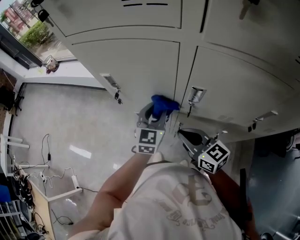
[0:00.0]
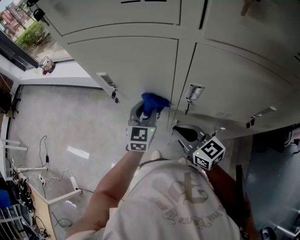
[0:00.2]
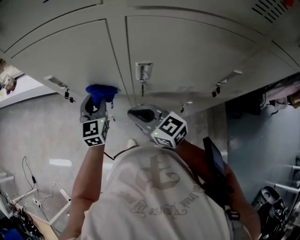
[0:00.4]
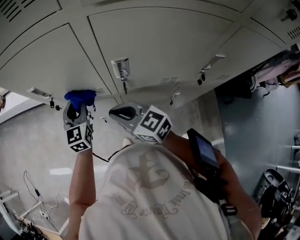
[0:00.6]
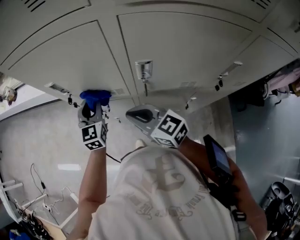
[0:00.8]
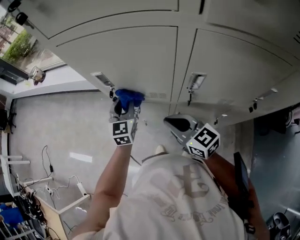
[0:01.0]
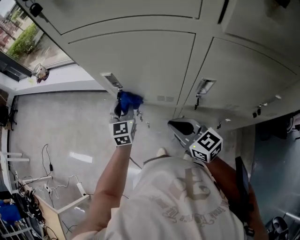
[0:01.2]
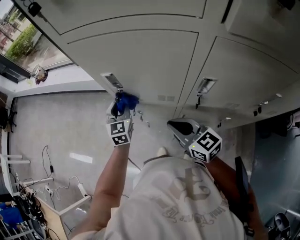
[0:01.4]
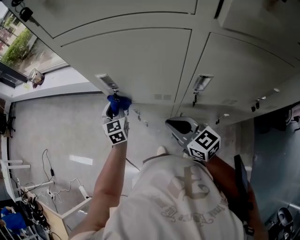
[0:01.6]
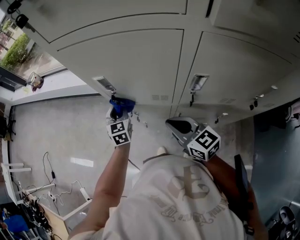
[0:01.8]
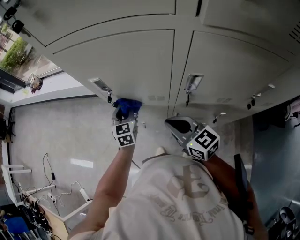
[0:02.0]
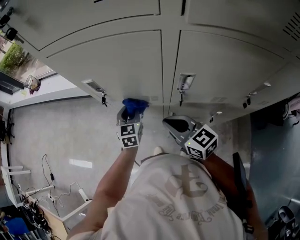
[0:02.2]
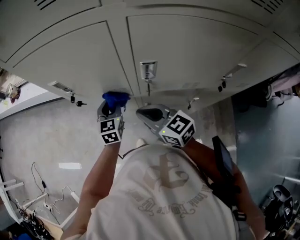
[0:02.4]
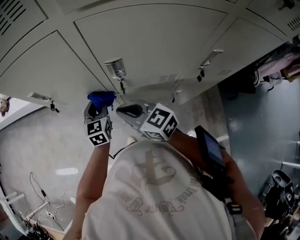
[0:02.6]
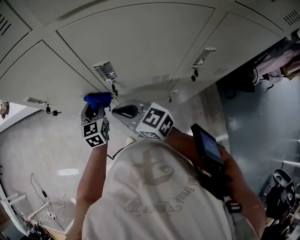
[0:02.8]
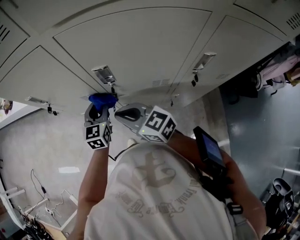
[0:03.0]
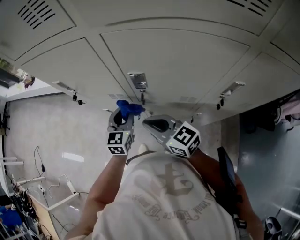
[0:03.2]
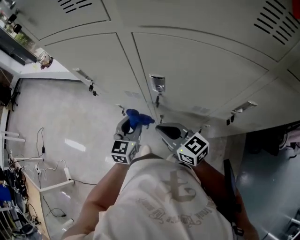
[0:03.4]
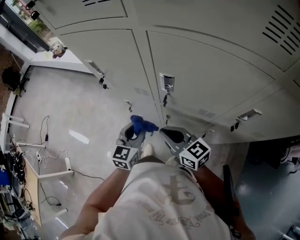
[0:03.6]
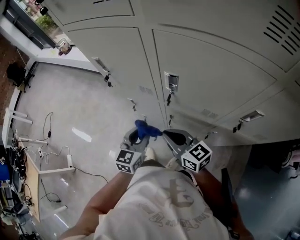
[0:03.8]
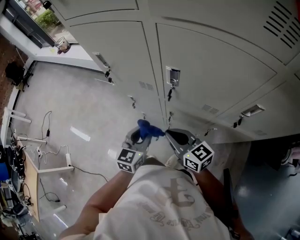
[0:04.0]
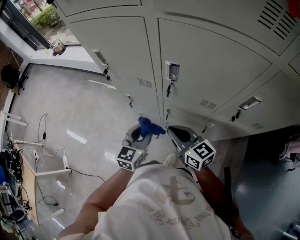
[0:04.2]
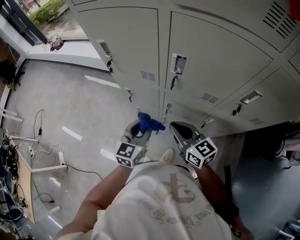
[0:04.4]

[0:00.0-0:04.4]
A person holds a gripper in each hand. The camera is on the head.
0:00.0 to 0:01.4: The right gripper shifts approximately 5 cm to the left, while the left gripper shifts some 20 cm to the left and forward.
0:01.4 to 0:03.0: The left gripper moves to the right and backward, some 25 cm, while the right gripper travels to the right by approximately 10 cm.
0:03.0 to 0:04.4: The right gripper goes some 10 cm backward; the left gripper travels backward by about 15 cm.

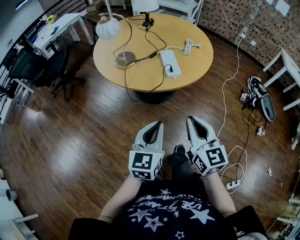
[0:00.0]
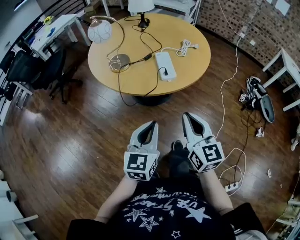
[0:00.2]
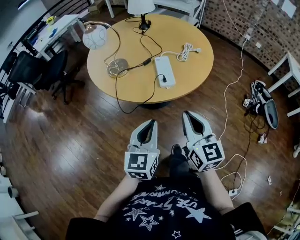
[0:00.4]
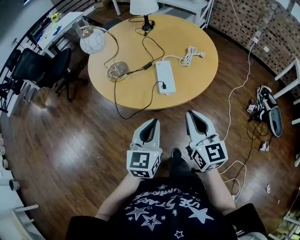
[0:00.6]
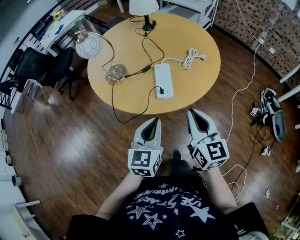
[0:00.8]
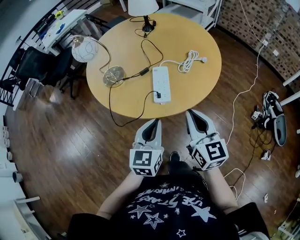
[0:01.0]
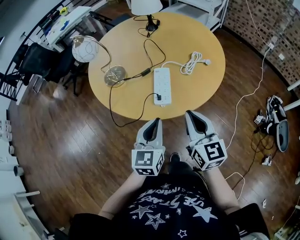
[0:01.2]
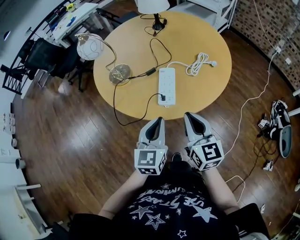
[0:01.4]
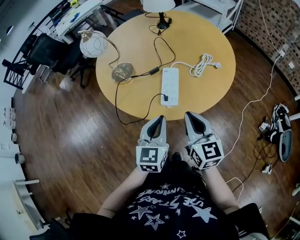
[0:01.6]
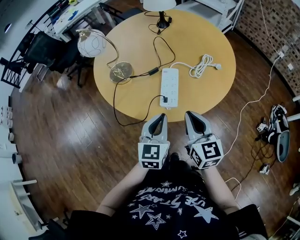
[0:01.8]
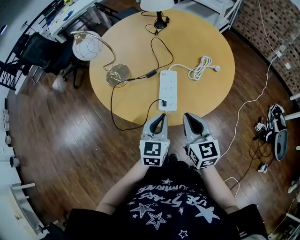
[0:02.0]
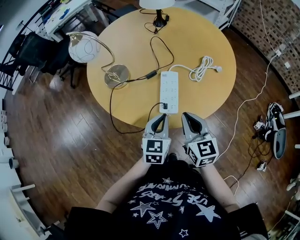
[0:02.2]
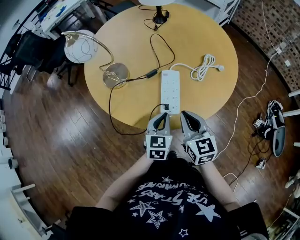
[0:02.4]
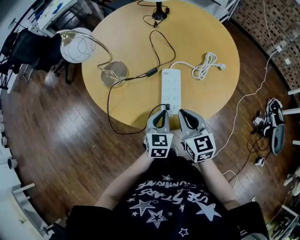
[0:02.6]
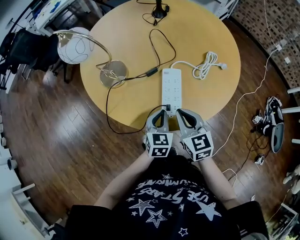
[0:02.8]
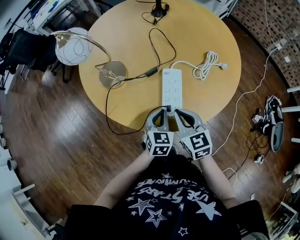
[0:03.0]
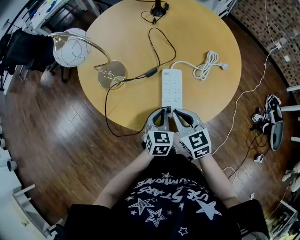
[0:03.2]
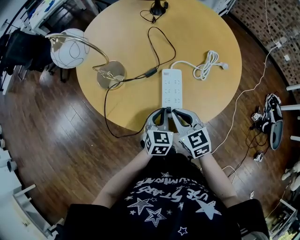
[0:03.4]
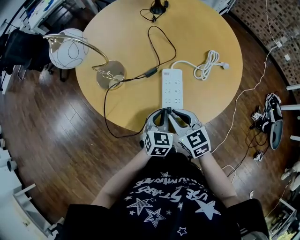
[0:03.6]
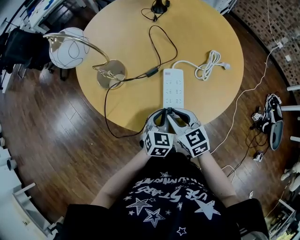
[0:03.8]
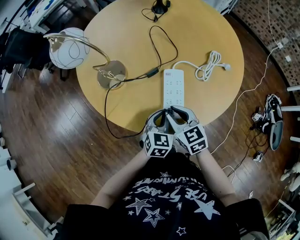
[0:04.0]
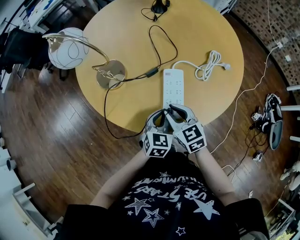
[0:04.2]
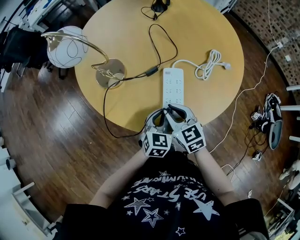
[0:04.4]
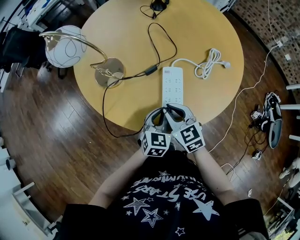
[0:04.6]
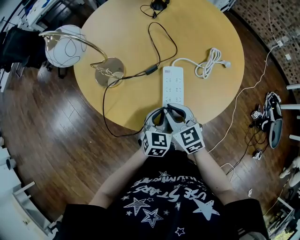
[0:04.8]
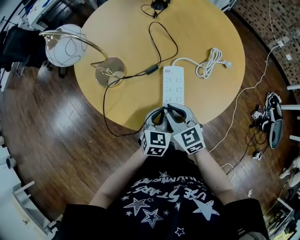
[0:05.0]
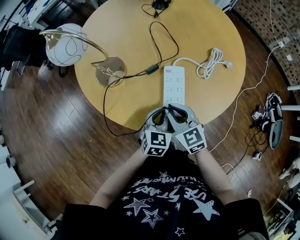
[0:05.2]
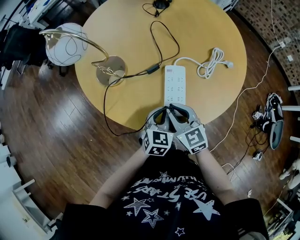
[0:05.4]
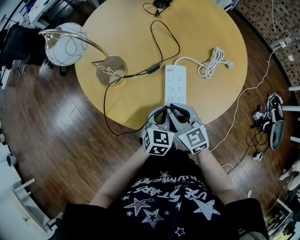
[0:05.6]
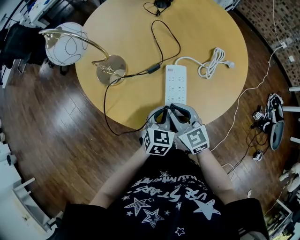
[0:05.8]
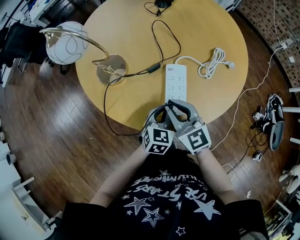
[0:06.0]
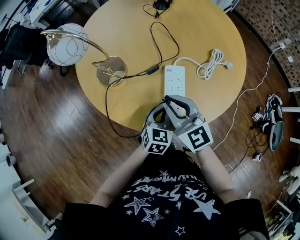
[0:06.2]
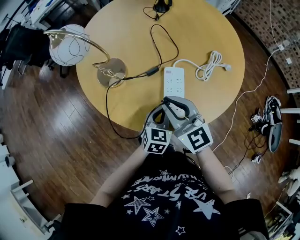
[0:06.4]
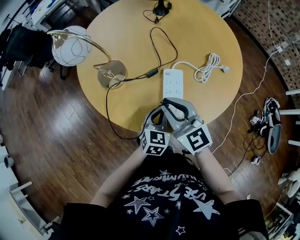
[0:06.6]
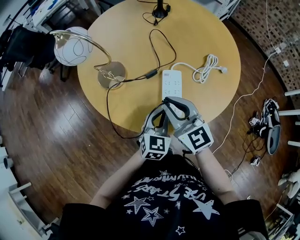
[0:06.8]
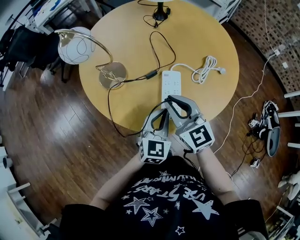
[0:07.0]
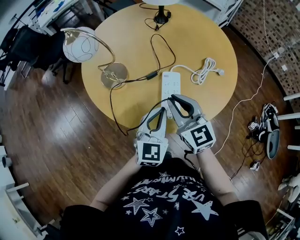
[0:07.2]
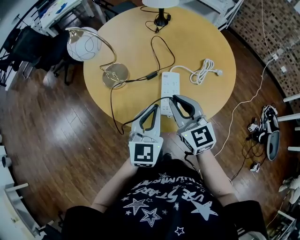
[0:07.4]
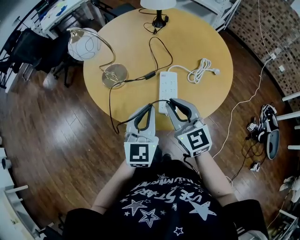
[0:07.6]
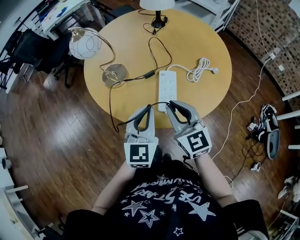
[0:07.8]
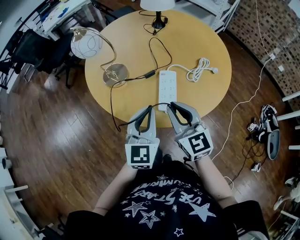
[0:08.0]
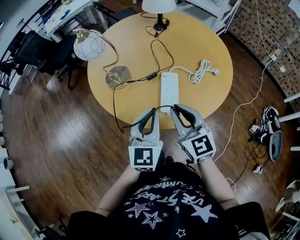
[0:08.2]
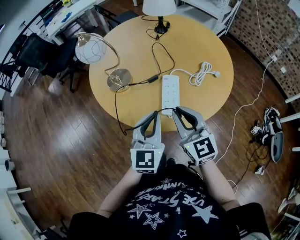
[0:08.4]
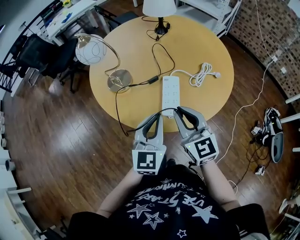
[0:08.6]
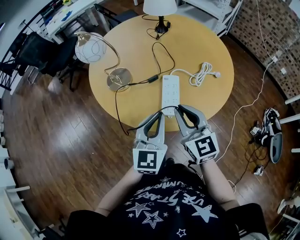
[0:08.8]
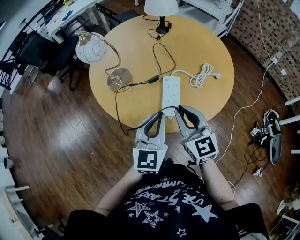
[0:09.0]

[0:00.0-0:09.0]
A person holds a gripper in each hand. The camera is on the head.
0:00.0 to 0:01.6: The grippers both shift forward and to the right by about 25 cm. The left gripper changes its angle by approximately 20 degrees.
0:01.6 to 0:03.0: The right gripper shifts some 15 cm downward, forward and to the left. Meanwhile the left gripper travels downward and forward by approximately 20 cm, and changes its angle by about 20 degrees.
0:03.0 to 0:04.4: The right gripper changes place by about 5 cm.
0:04.4 to 0:06.0: The right gripper heads upward, covering approximately 5 cm.
0:06.0 to 0:07.6: The right gripper moves upward, roughly 10 cm. The left gripper is displaced upward by roughly 20 cm, and tilts its fingers roughly 30 degrees upward.
0:07.6 to 0:09.0: The grippers stay close to where they were, moving slightly.

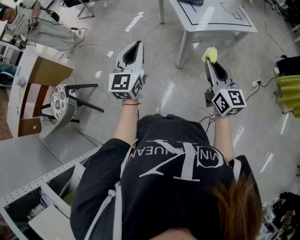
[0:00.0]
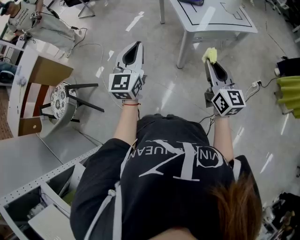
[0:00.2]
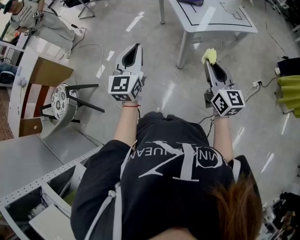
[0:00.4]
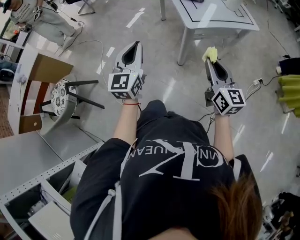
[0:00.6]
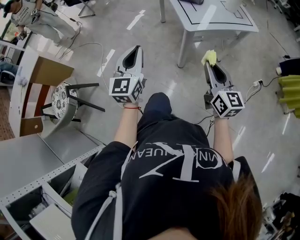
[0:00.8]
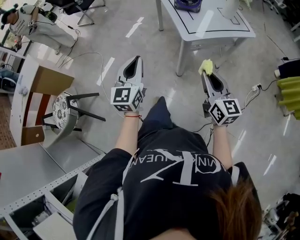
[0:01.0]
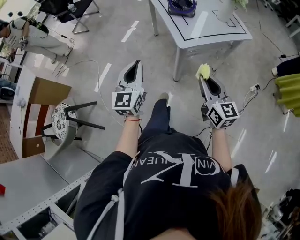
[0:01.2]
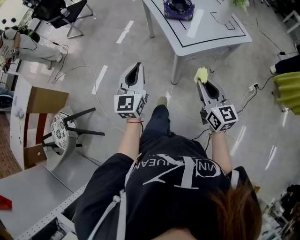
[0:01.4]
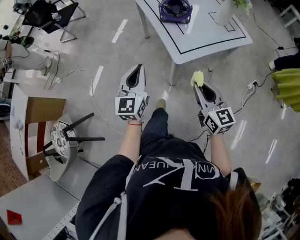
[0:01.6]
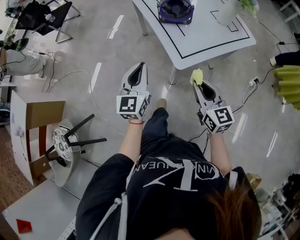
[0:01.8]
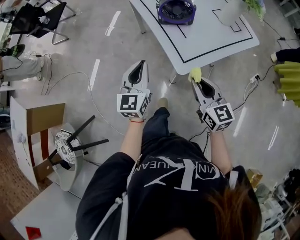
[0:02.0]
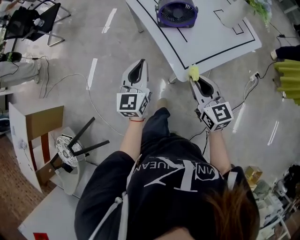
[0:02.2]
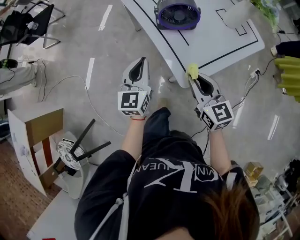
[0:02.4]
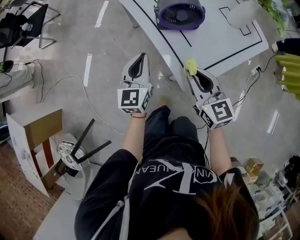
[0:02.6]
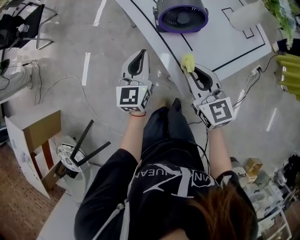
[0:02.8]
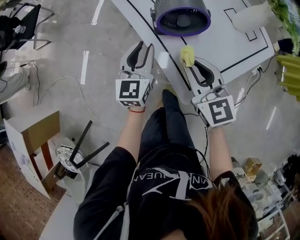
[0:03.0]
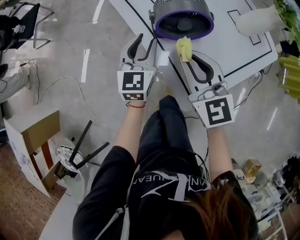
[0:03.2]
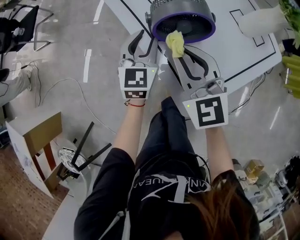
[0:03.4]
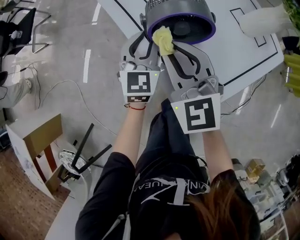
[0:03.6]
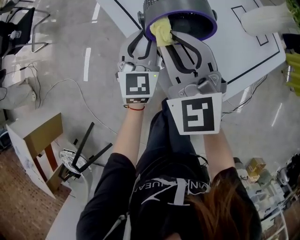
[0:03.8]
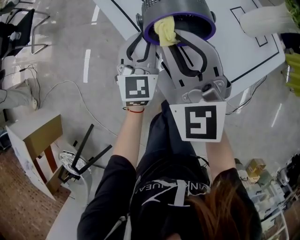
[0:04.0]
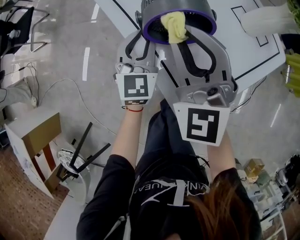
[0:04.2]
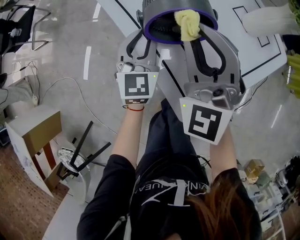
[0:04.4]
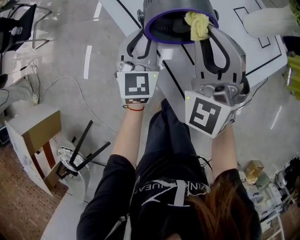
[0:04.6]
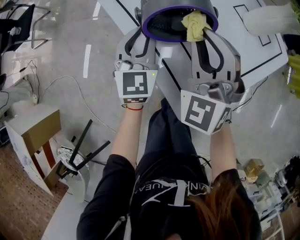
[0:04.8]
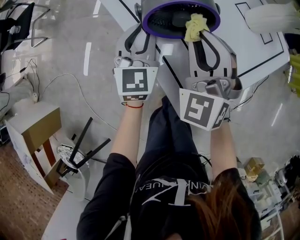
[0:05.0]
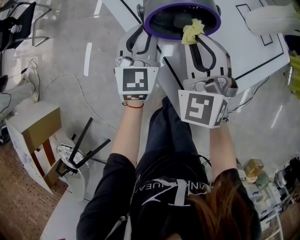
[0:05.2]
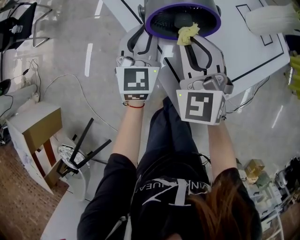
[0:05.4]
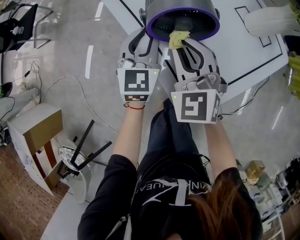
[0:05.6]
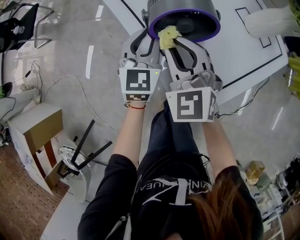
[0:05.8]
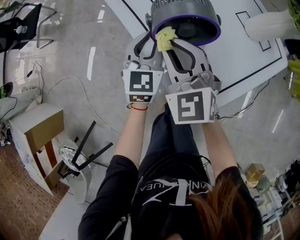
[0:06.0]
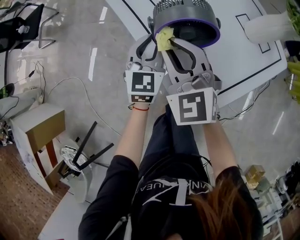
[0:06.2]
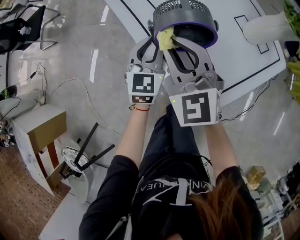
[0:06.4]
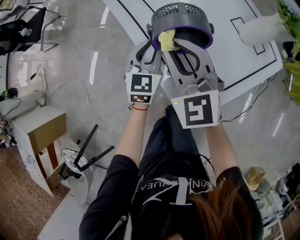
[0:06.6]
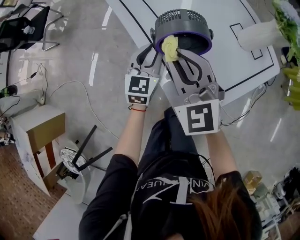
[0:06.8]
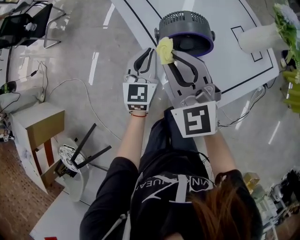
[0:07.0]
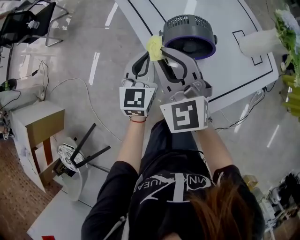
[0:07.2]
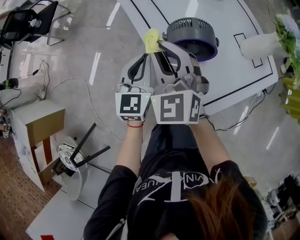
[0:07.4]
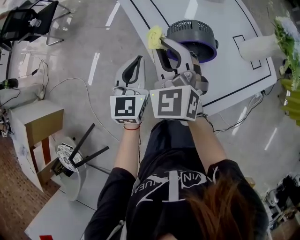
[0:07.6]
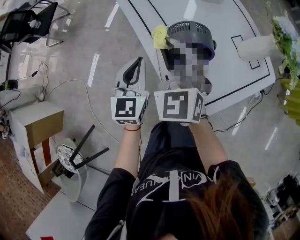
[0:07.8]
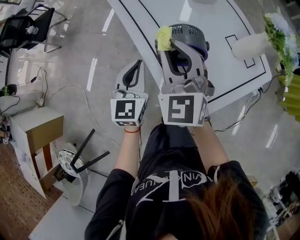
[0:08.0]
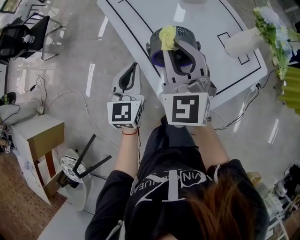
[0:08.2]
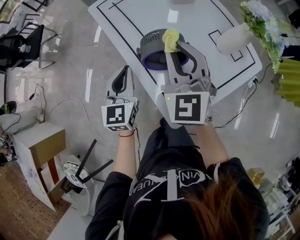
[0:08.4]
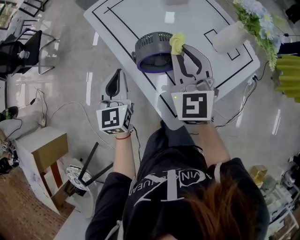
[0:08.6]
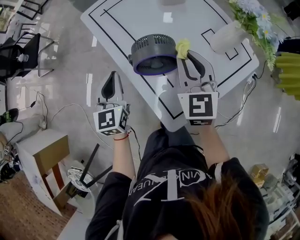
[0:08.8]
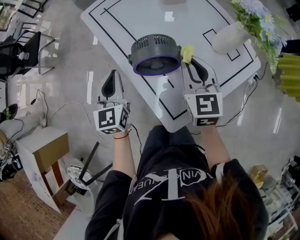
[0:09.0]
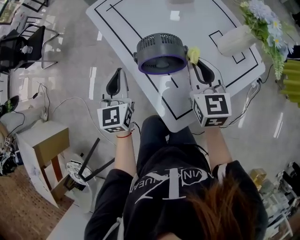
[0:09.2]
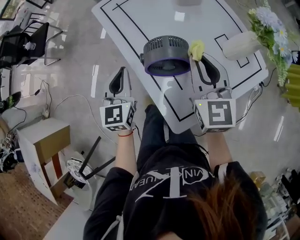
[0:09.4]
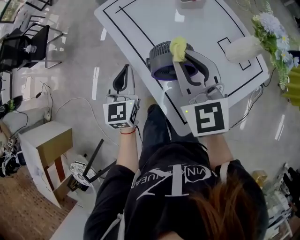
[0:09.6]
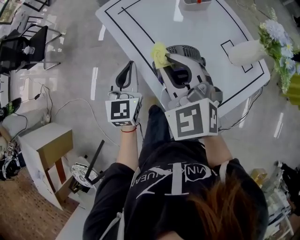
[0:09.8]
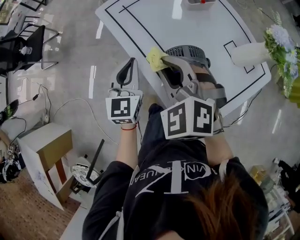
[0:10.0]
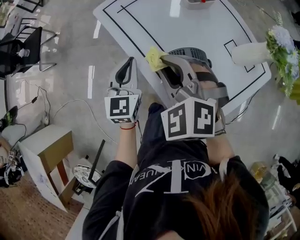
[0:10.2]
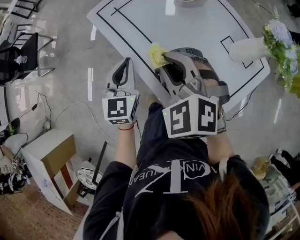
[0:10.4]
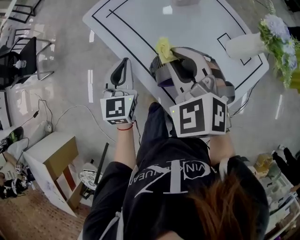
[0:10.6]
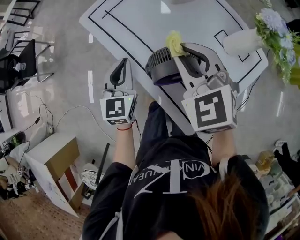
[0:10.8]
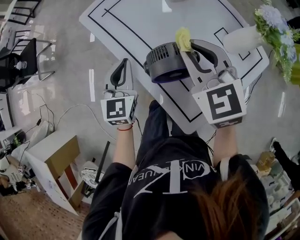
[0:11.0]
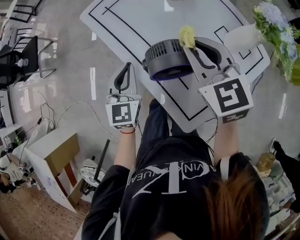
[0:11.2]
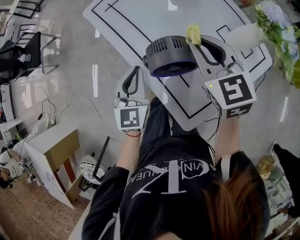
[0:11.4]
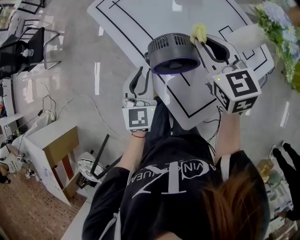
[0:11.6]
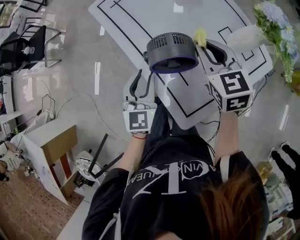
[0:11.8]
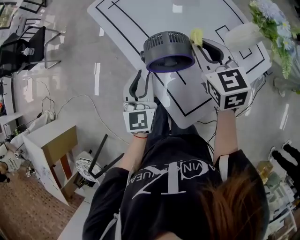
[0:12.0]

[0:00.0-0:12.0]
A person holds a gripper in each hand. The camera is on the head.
0:00.0 to 0:01.6: The right gripper travels forward and downward by some 15 cm, while the left gripper goes approximately 20 cm forward.
0:01.6 to 0:03.0: The grippers both shift forward by approximately 30 cm. The left gripper opens up.
0:03.0 to 0:04.4: The right gripper travels forward and upward by about 10 cm, and rotates some 40 degrees. Meanwhile the left gripper moves forward, roughly 5 cm.
0:04.4 to 0:06.0: The right gripper travels downward and to the left by about 10 cm, and changes its angle by some 20 degrees.
0:06.0 to 0:07.6: The left gripper heads to the left and upward, covering approximately 10 cm; the right gripper moves upward and to the left, some 10 cm.
0:07.6 to 0:09.0: The right gripper moves to the right, some 20 cm, and swivels about 30 degrees.
0:09.0 to 0:10.4: The left gripper heads forward, covering roughly 10 cm; the right gripper moves to the left, roughly 15 cm, and swivels about 40 degrees.
0:10.4 to 0:12.0: The right gripper moves to the right, approximately 15 cm, and rotates roughly 40 degrees, while the left gripper goes some 15 cm backward and to the right, and opens up.
